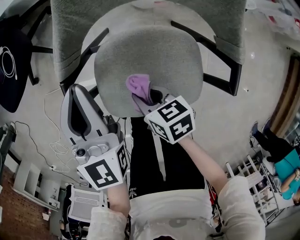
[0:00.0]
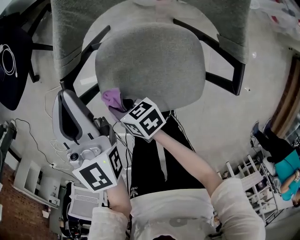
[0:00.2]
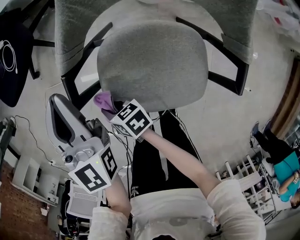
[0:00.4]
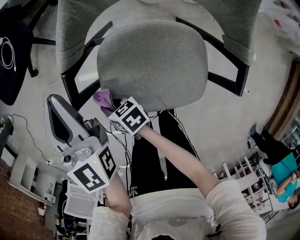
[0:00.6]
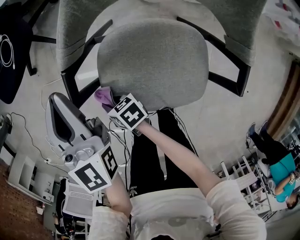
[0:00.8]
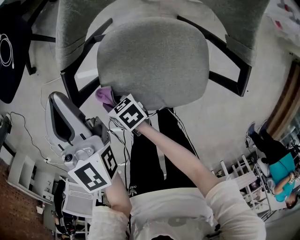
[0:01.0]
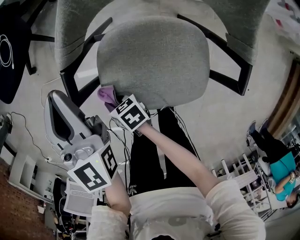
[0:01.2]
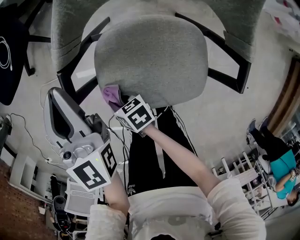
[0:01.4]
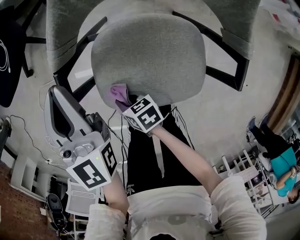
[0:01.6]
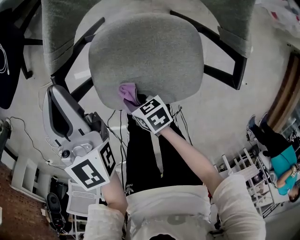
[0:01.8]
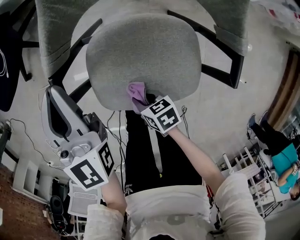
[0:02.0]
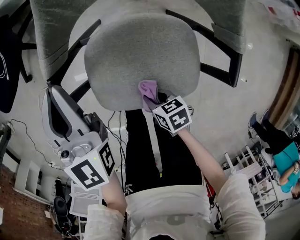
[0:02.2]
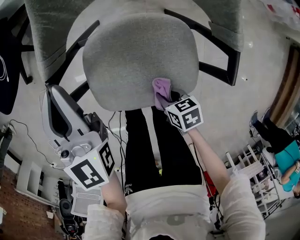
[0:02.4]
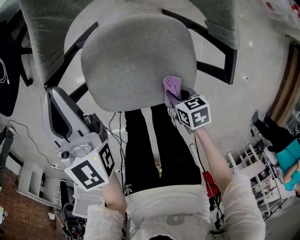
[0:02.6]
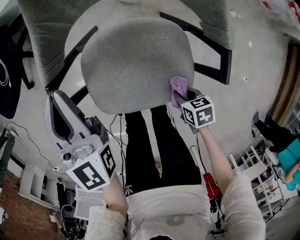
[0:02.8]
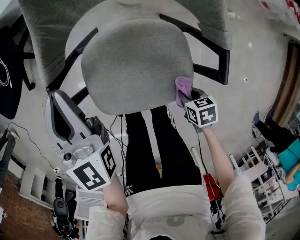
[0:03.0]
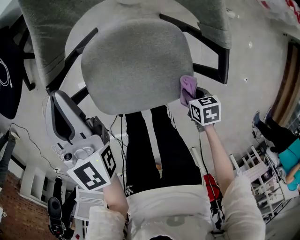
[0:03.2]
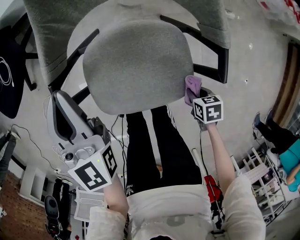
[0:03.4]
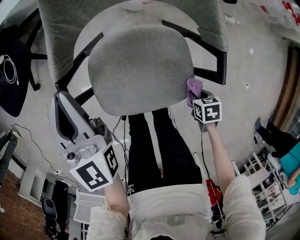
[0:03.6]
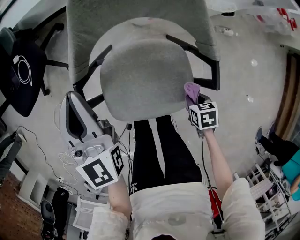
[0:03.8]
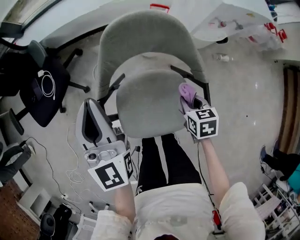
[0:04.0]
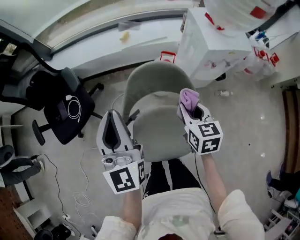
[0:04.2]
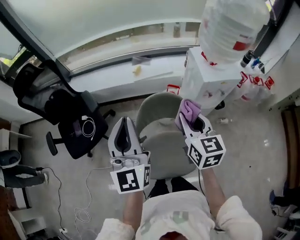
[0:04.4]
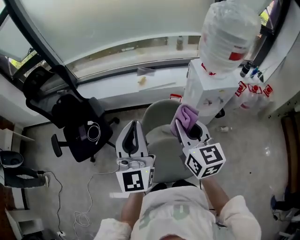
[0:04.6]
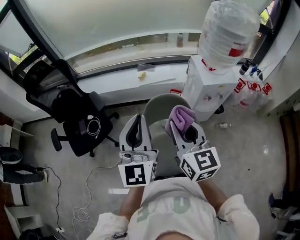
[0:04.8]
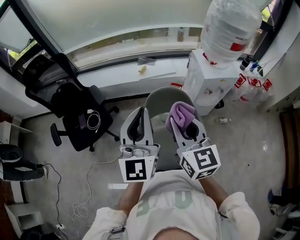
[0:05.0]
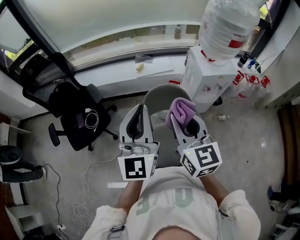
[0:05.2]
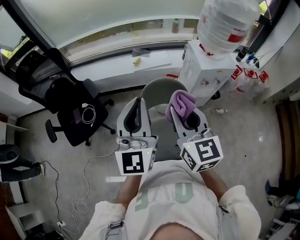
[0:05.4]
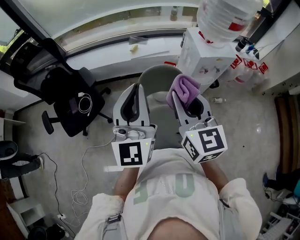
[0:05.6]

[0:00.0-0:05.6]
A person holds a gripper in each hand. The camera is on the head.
0:00.0 to 0:01.4: The right gripper travels to the left and downward by approximately 15 cm; the left gripper shifts by approximately 5 cm.
0:01.4 to 0:02.8: The left gripper shifts by about 5 cm. Meanwhile the right gripper heads backward and to the right, covering approximately 30 cm, and changes its angle by roughly 30 degrees.
0:02.8 to 0:04.2: Both grippers move upward, roughly 35 cm. The left gripper turns by some 30 degrees; the right gripper tilts its fingers about 40 degrees upward.
0:04.2 to 0:05.6: The right gripper goes about 30 cm upward, and rotates about 30 degrees; the left gripper heads upward and backward, covering some 15 cm.

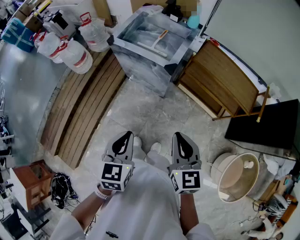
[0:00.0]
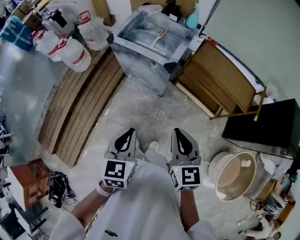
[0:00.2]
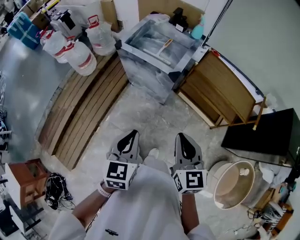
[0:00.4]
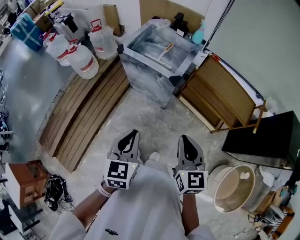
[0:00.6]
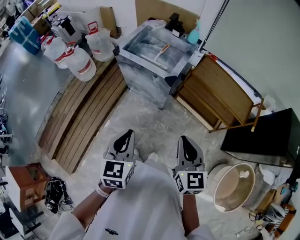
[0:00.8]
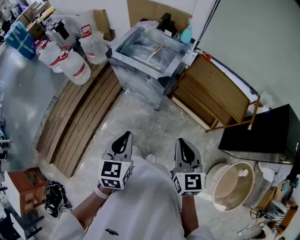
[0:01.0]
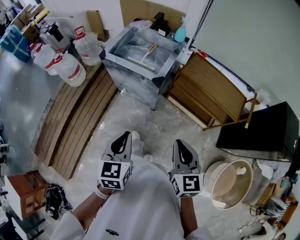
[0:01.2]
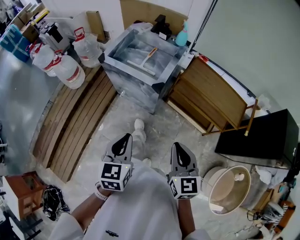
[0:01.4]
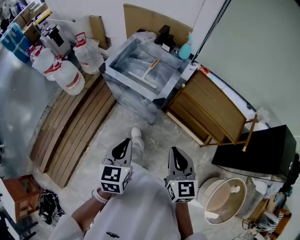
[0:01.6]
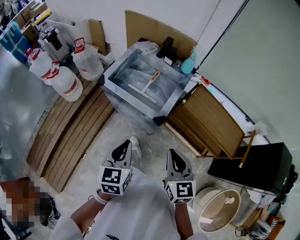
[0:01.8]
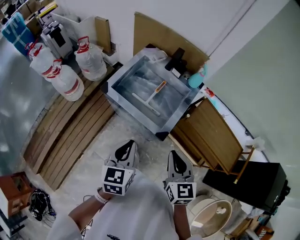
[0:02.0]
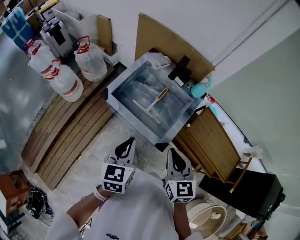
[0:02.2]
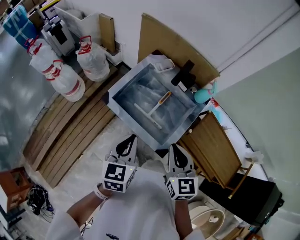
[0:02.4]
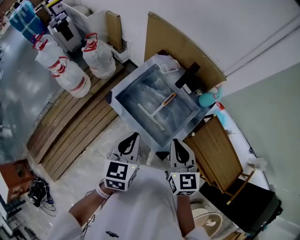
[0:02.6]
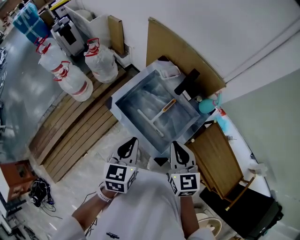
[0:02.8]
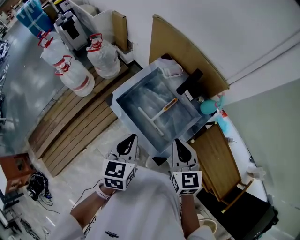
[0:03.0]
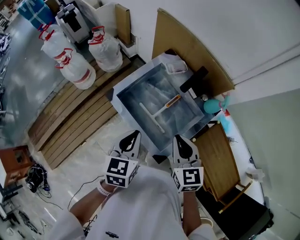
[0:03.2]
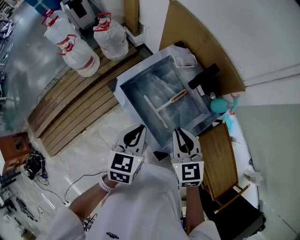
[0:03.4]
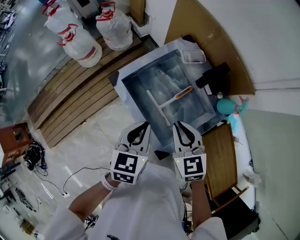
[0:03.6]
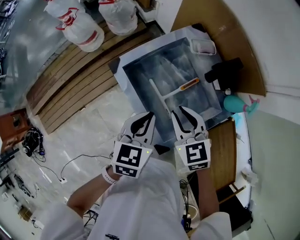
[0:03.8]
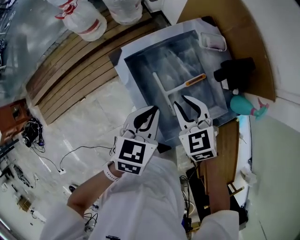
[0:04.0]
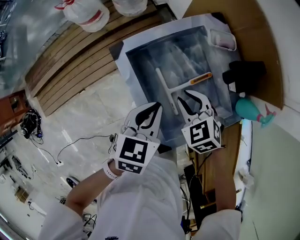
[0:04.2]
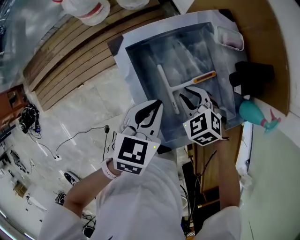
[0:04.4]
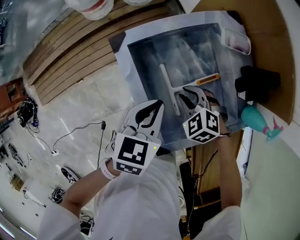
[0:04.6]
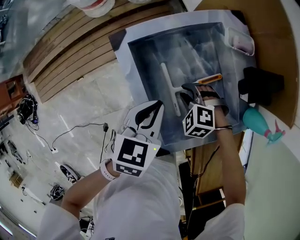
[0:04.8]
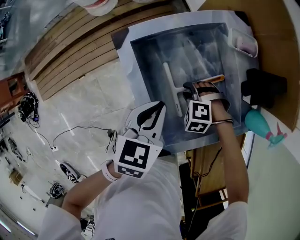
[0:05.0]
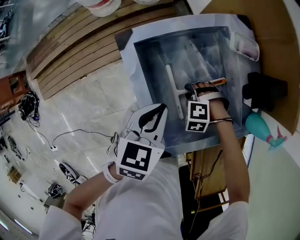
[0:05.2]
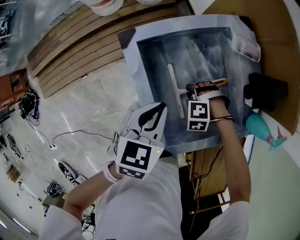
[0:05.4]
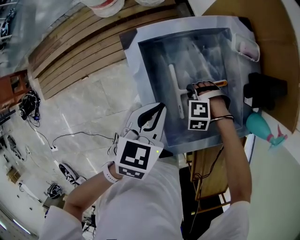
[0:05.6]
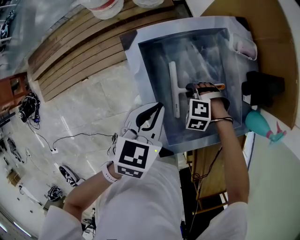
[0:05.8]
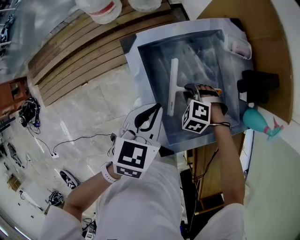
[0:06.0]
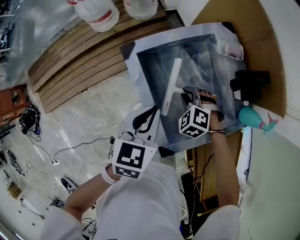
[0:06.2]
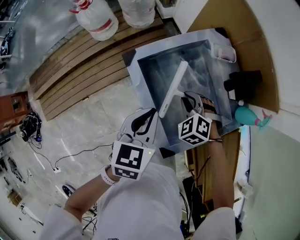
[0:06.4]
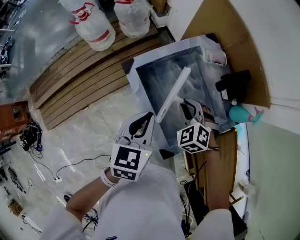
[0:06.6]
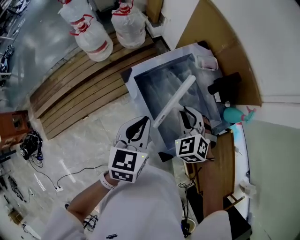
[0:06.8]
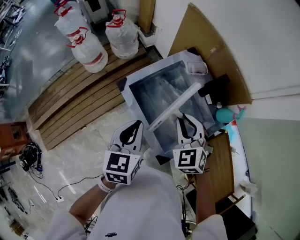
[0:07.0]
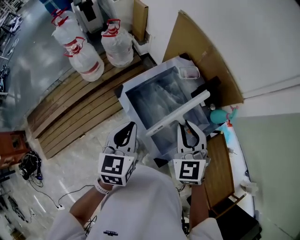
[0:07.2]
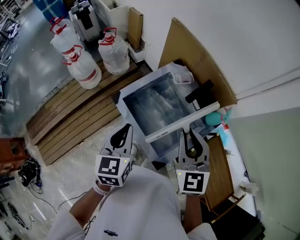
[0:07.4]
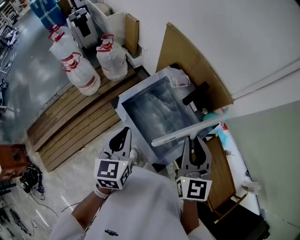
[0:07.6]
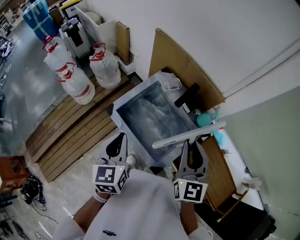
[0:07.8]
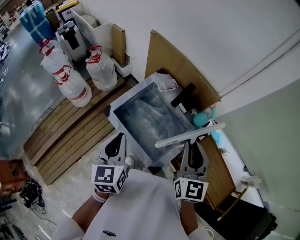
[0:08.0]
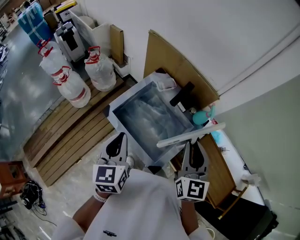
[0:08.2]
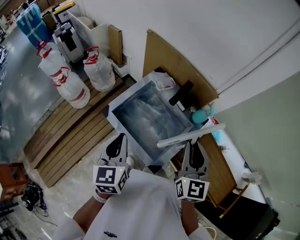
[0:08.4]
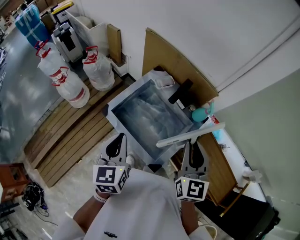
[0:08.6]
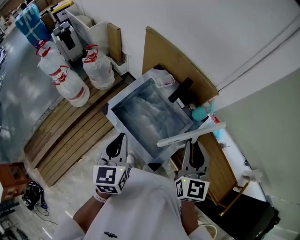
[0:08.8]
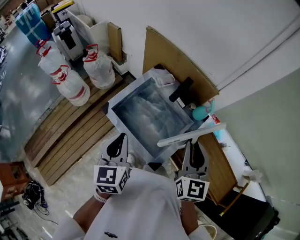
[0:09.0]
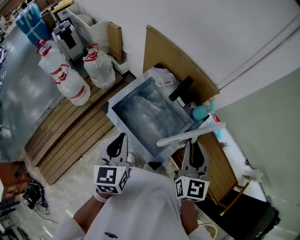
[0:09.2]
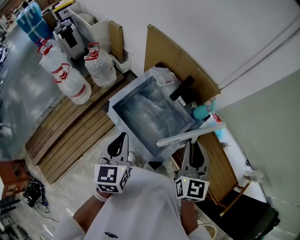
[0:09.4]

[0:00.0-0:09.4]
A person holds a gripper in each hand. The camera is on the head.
0:00.0 to 0:01.6: Both grippers move forward, roughly 10 cm.
0:01.6 to 0:03.2: Both grippers travel together forward, roughly 40 cm. The right gripper swivels some 20 degrees.
0:03.2 to 0:04.8: The right gripper is displaced downward by roughly 30 cm, points its fingers about 40 degrees further downward, and opens its fingers. Meanwhile the left gripper goes some 15 cm downward.
0:04.8 to 0:06.2: The left gripper ends up some 5 cm from where it was.
0:06.2 to 0:07.8: The right gripper moves upward, approximately 40 cm, and angles its fingers upward, by some 60 degrees. The left gripper shifts roughly 20 cm upward.
0:07.8 to 0:09.4: The grippers move only a little.

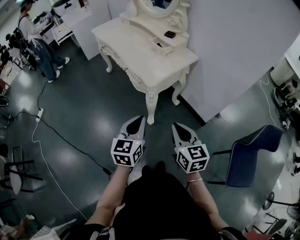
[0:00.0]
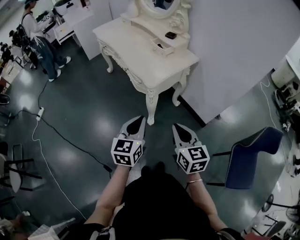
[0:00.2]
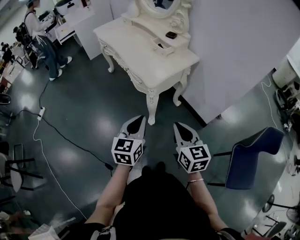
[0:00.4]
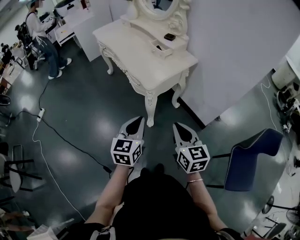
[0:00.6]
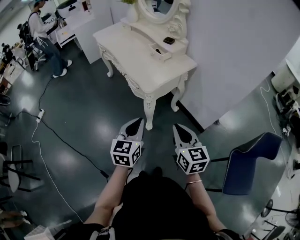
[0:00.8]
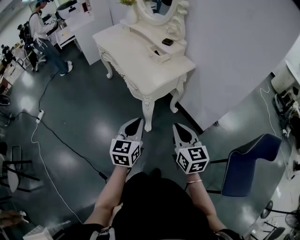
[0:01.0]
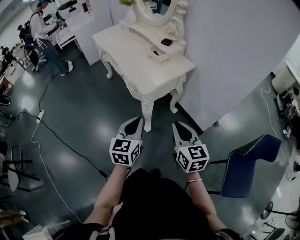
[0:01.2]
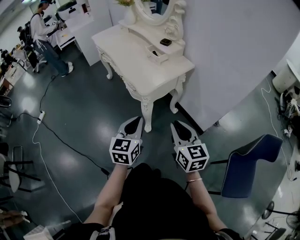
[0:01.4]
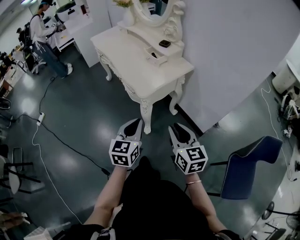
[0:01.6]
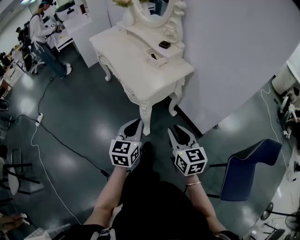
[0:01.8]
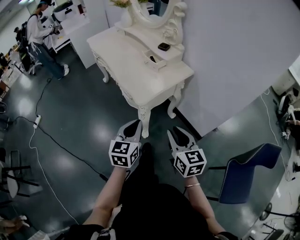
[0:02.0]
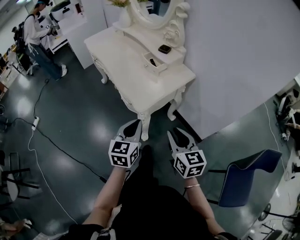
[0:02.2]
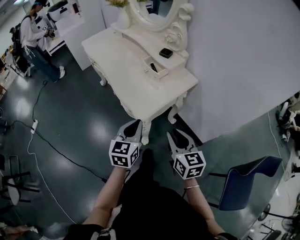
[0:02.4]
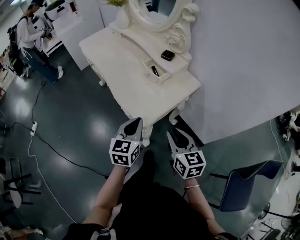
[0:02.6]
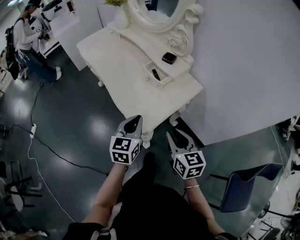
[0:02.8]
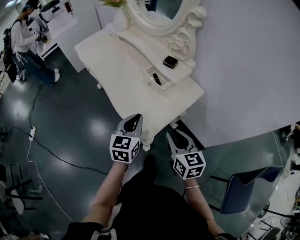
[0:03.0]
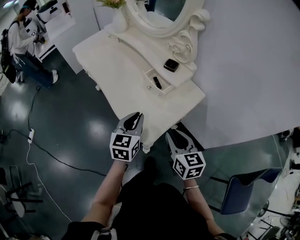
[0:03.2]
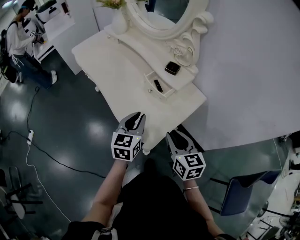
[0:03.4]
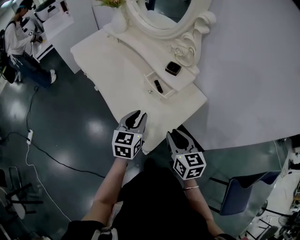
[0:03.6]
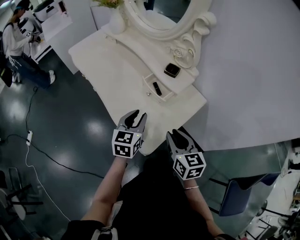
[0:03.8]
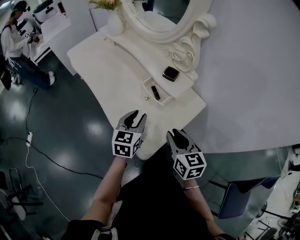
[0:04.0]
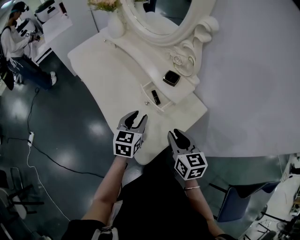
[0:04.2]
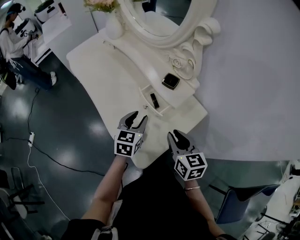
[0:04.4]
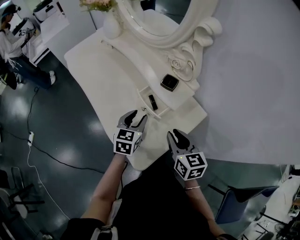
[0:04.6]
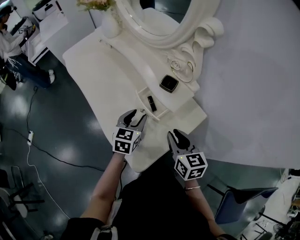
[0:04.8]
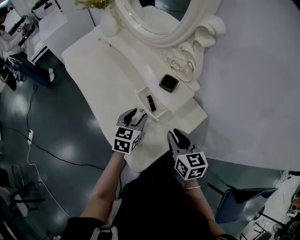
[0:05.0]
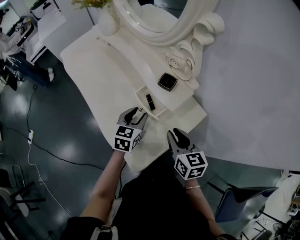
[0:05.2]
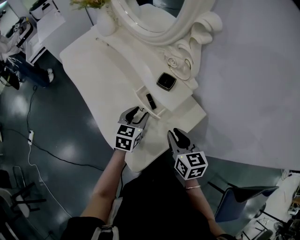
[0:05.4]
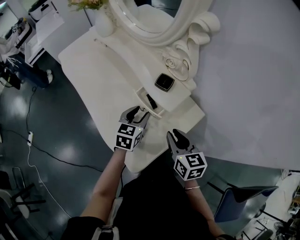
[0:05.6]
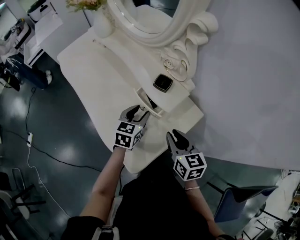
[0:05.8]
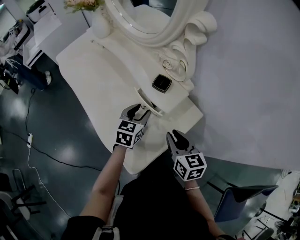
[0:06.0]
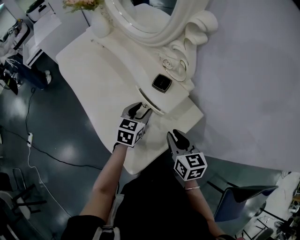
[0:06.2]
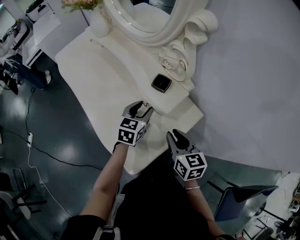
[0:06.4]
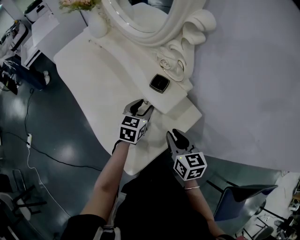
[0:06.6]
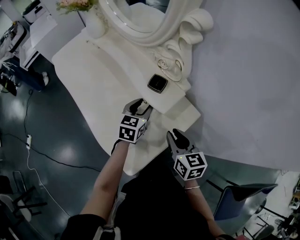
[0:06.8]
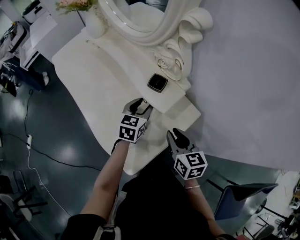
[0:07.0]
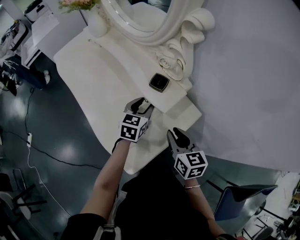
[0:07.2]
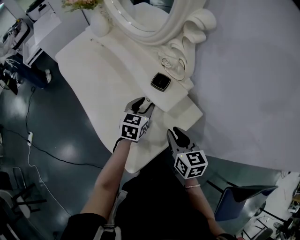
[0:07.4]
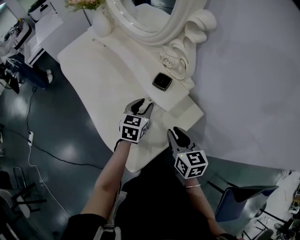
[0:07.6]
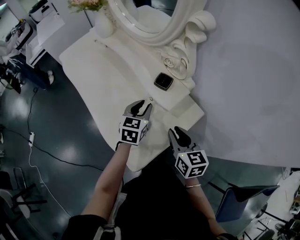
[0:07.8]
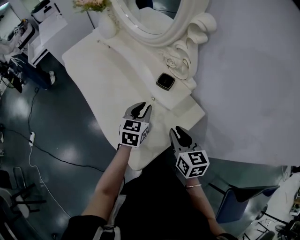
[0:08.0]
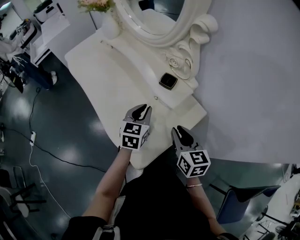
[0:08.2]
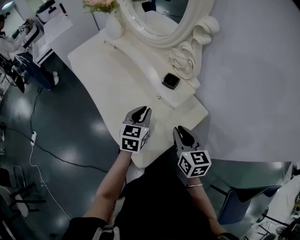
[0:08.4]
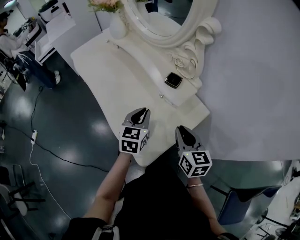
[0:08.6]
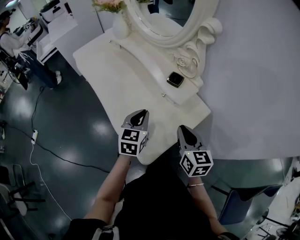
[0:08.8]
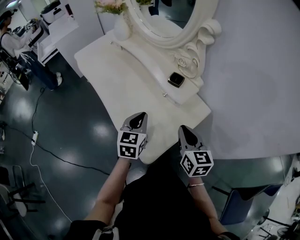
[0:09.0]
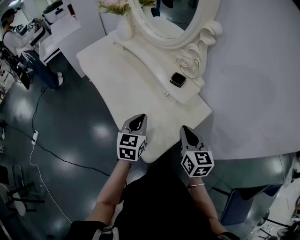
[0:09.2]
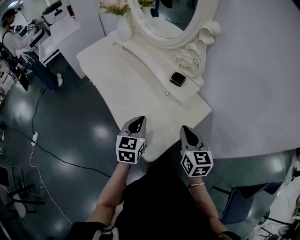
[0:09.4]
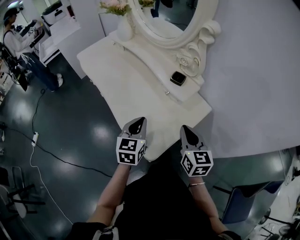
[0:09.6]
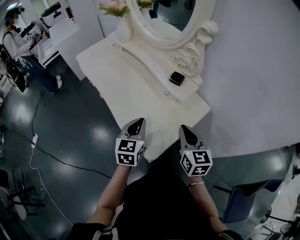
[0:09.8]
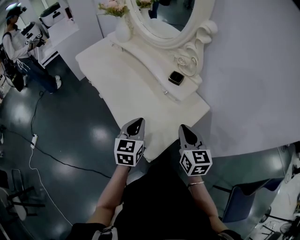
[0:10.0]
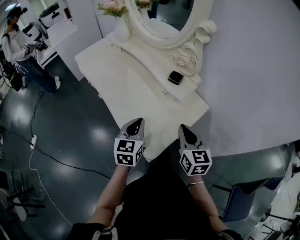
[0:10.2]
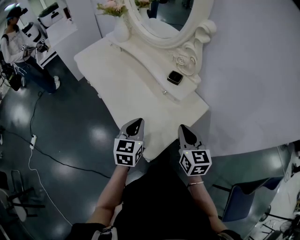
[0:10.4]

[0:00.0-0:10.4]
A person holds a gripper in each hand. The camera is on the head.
0:00.0 to 0:01.4: The left gripper ends up some 5 cm from where it was. Meanwhile the right gripper shifts by some 5 cm.
0:01.4 to 0:03.0: The grippers both shift forward by about 25 cm.
0:03.0 to 0:04.4: Both grippers travel together forward, some 15 cm. The left gripper opens its fingers.
0:04.4 to 0:06.0: The right gripper changes place by some 5 cm; the left gripper is displaced forward and to the right by about 10 cm.
0:06.0 to 0:07.4: The grippers make only small movements.
0:07.4 to 0:09.0: The right gripper shifts by about 5 cm, while the left gripper travels backward, to the left and upward by some 15 cm, and closes.
0:09.0 to 0:10.4: The left gripper shifts approximately 5 cm backward.
